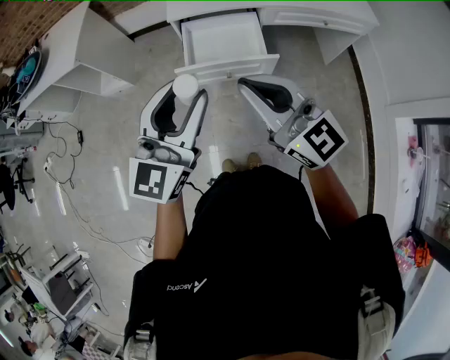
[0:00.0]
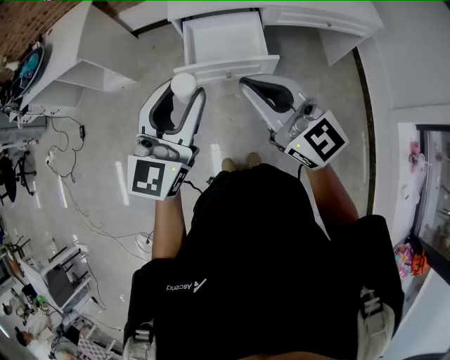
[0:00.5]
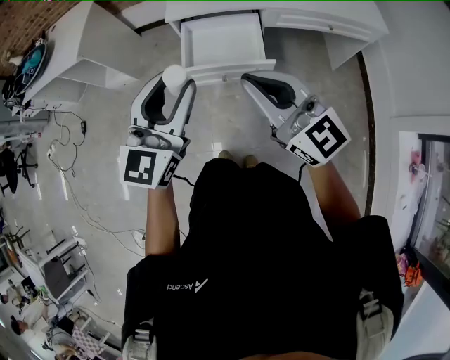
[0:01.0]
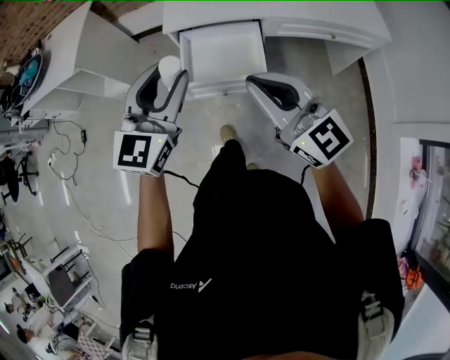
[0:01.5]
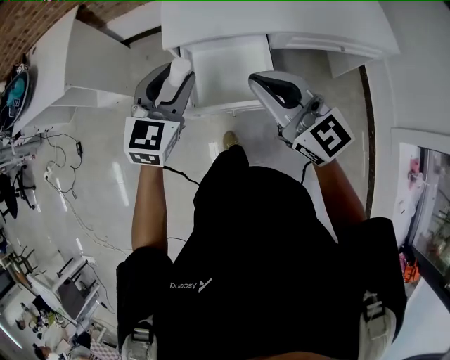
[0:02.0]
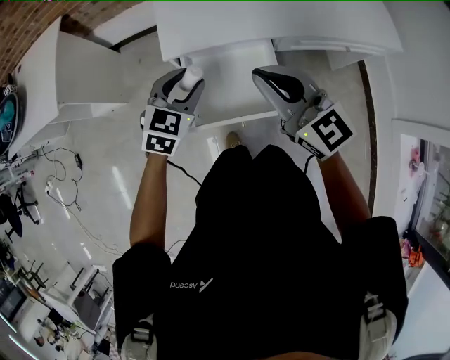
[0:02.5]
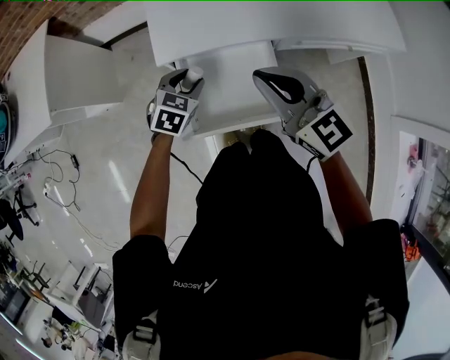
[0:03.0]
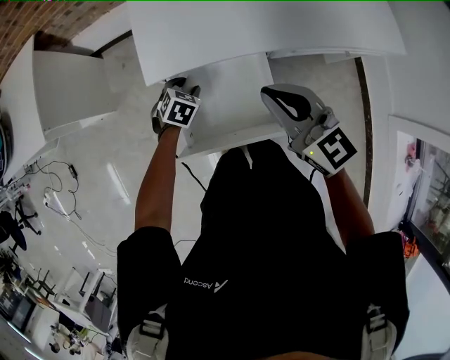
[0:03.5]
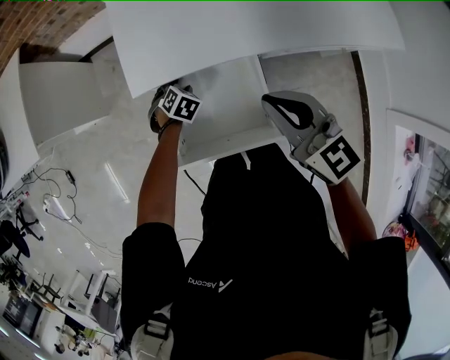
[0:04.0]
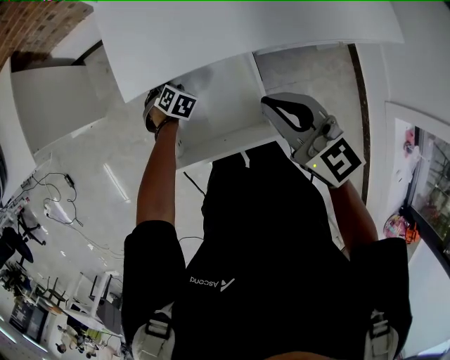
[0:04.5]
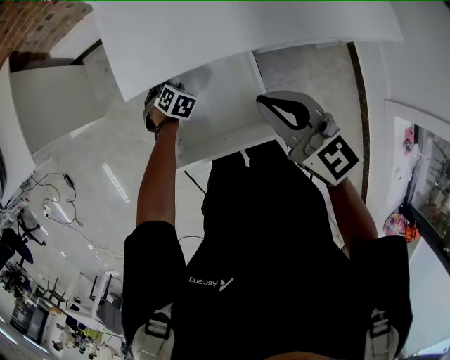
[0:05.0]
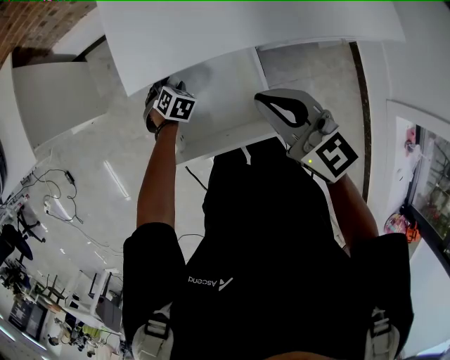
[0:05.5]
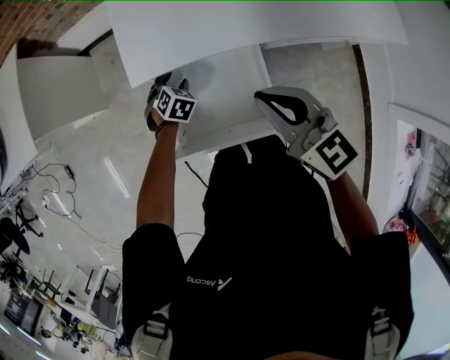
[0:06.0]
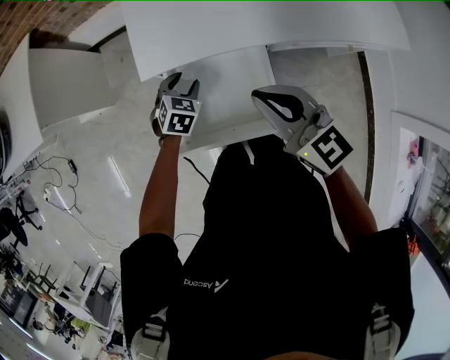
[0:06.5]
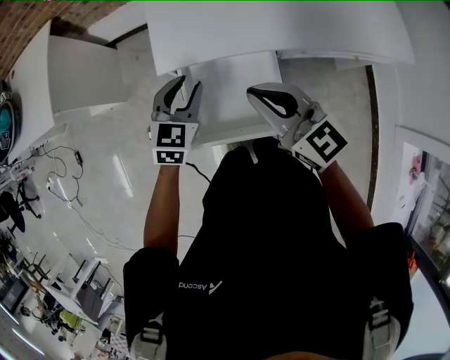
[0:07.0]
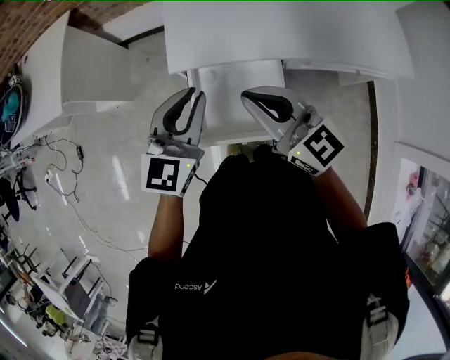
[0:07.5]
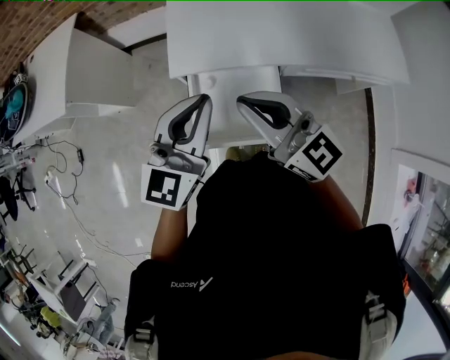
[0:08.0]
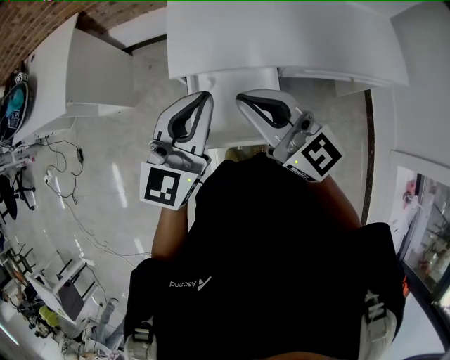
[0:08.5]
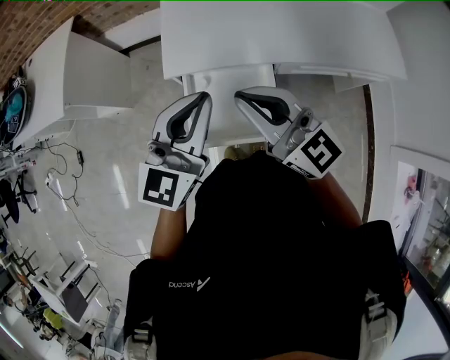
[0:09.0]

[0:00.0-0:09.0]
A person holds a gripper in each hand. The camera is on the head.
0:00.0 to 0:02.0: The grippers both shift forward by some 30 cm. The left gripper changes its angle by approximately 30 degrees.
0:02.0 to 0:04.5: The left gripper goes approximately 50 cm downward and forward, and angles its fingers downward, by approximately 50 degrees. The right gripper goes roughly 25 cm forward and downward, and turns by some 20 degrees.
0:04.5 to 0:07.0: The right gripper travels to the left by about 5 cm; the left gripper is displaced upward by roughly 30 cm, and points its fingers approximately 40 degrees further upward.
0:07.0 to 0:09.0: The left gripper shifts roughly 25 cm upward and backward, rotates roughly 30 degrees, and closes its fingers. The right gripper travels upward by about 10 cm.

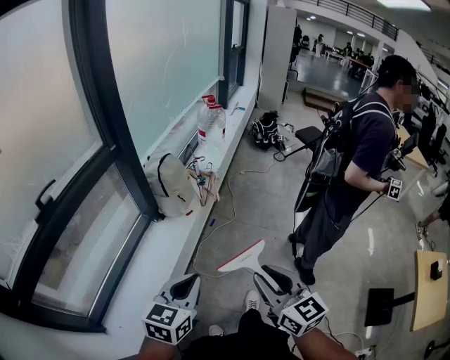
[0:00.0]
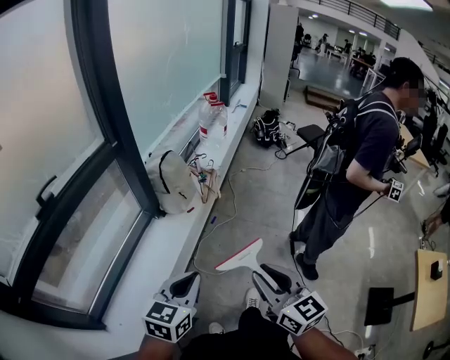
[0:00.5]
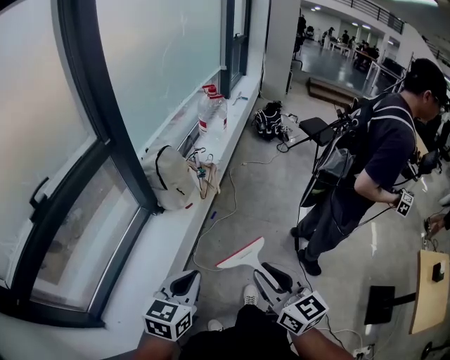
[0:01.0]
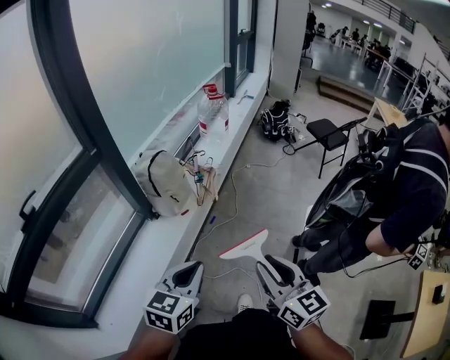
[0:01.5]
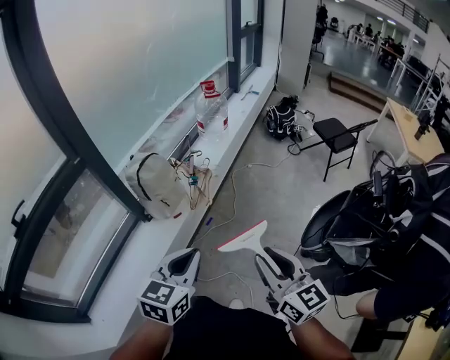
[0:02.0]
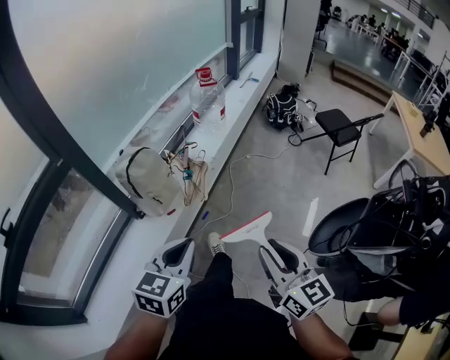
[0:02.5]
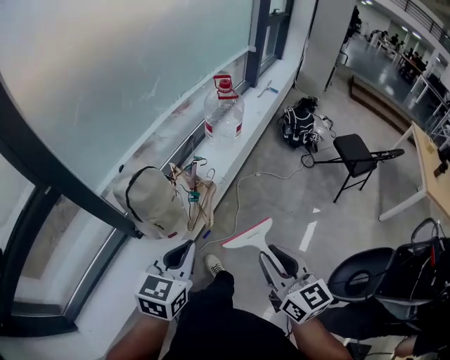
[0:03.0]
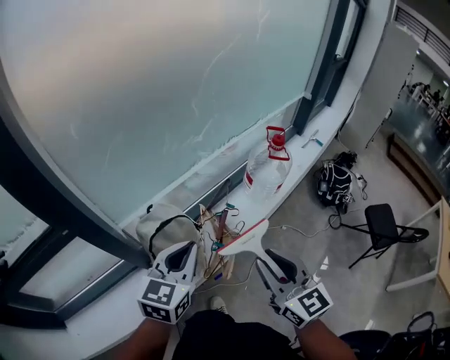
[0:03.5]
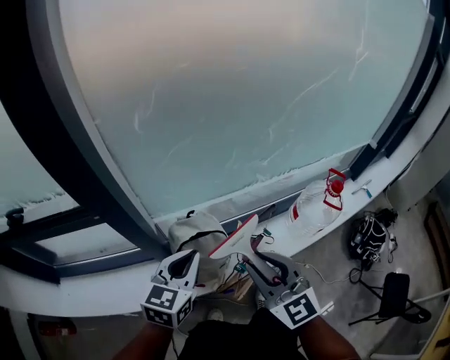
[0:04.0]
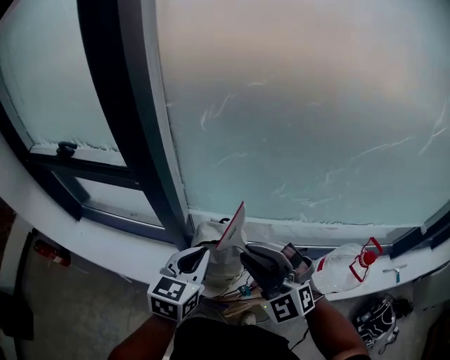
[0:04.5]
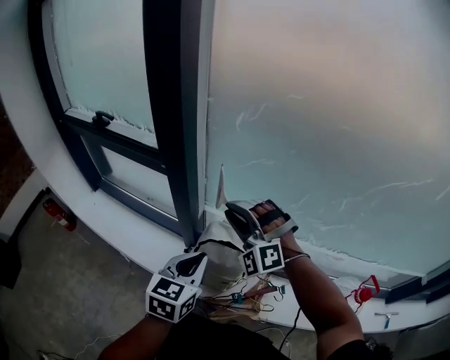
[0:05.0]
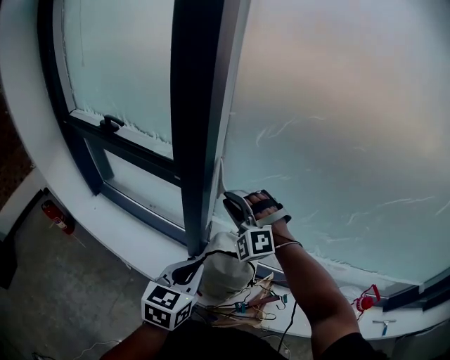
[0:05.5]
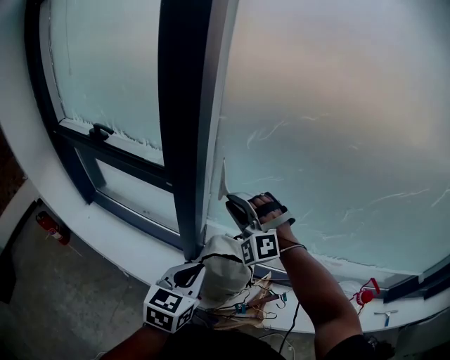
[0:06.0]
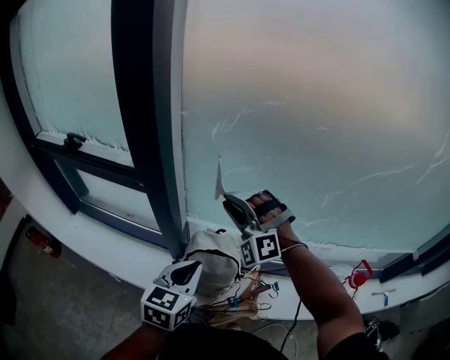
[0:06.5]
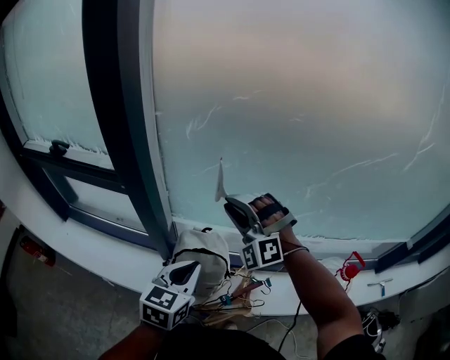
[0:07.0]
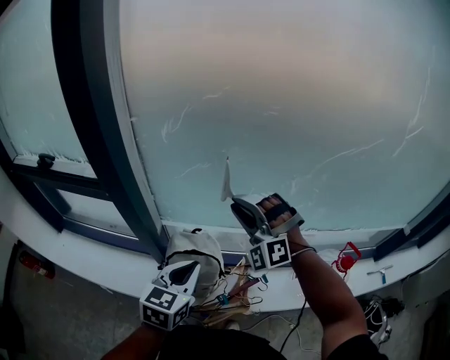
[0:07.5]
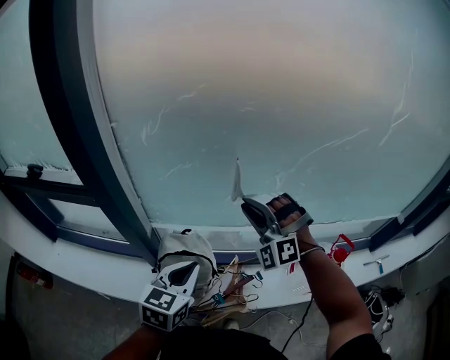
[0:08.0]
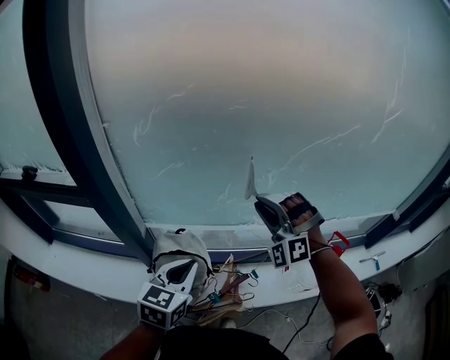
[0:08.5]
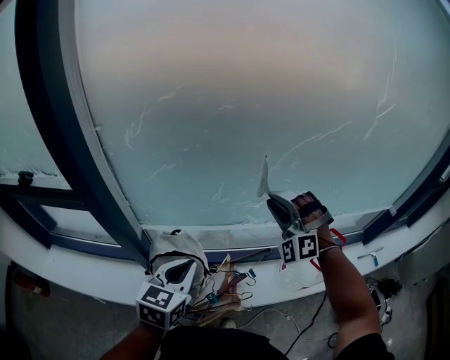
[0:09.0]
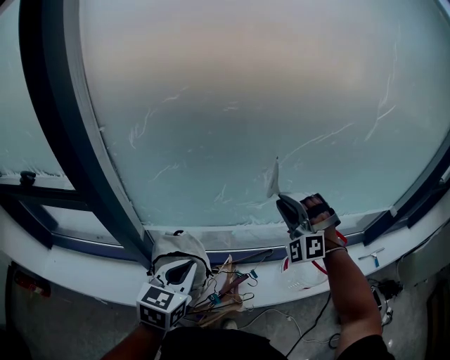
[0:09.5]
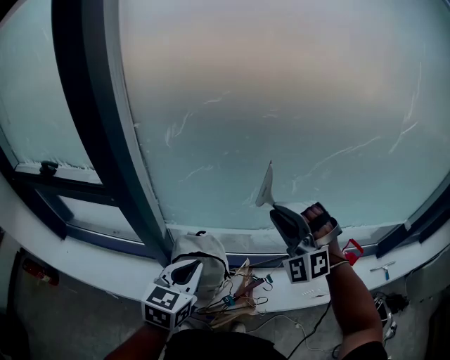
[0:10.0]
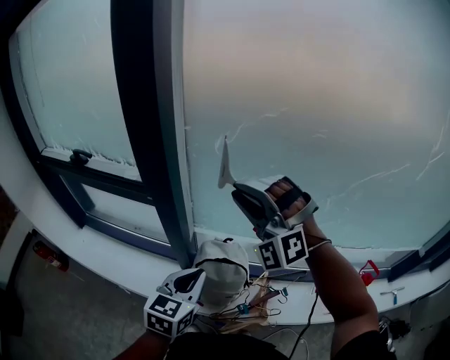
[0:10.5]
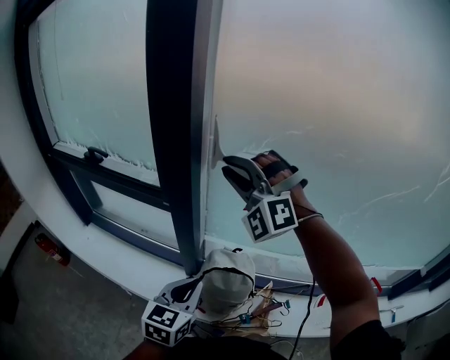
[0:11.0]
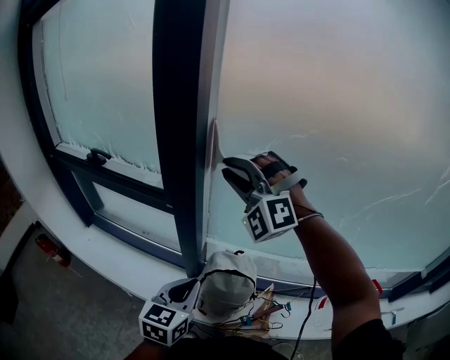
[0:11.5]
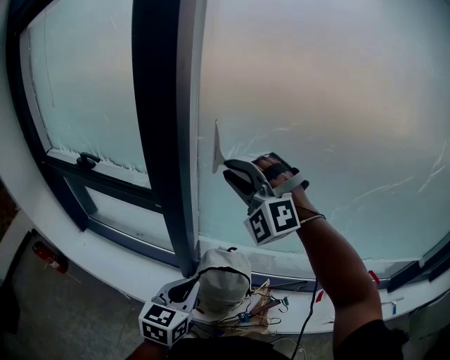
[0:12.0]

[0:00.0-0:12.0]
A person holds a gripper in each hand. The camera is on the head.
0:00.0 to 0:02.0: The grippers both shift forward and to the right by approximately 30 cm.
0:02.0 to 0:04.0: The two grippers travel together, about 60 cm. The left gripper swivels some 40 degrees; the right gripper changes its angle by approximately 60 degrees.
0:04.0 to 0:06.0: The left gripper shifts by roughly 5 cm, and rotates approximately 30 degrees. The right gripper shifts by roughly 25 cm, and twists about 70 degrees counterclockwise, seen from behind.
0:06.0 to 0:08.0: The right gripper shifts about 25 cm to the right, while the left gripper shifts approximately 15 cm to the right.
0:08.0 to 0:10.0: The right gripper moves about 15 cm to the right and comes back.
0:10.0 to 0:12.0: The right gripper goes some 30 cm to the left and forward, and swivels approximately 20 degrees. The left gripper shifts about 10 cm to the left.

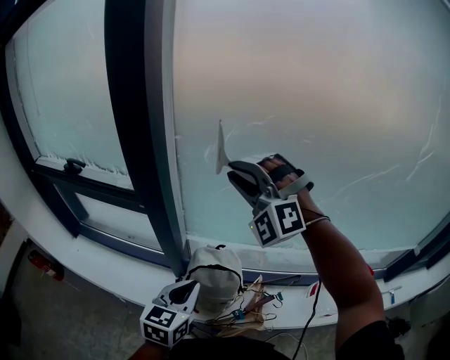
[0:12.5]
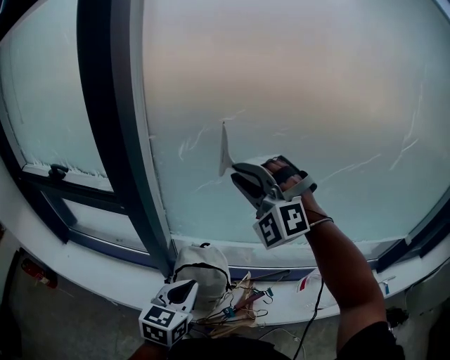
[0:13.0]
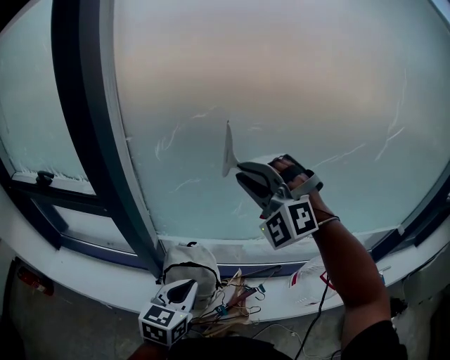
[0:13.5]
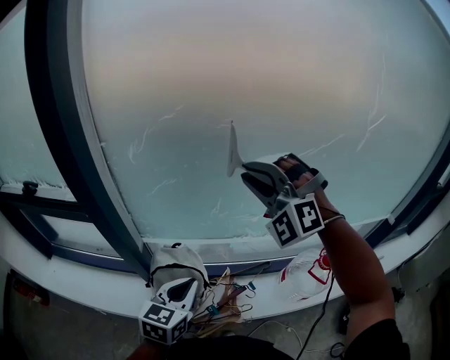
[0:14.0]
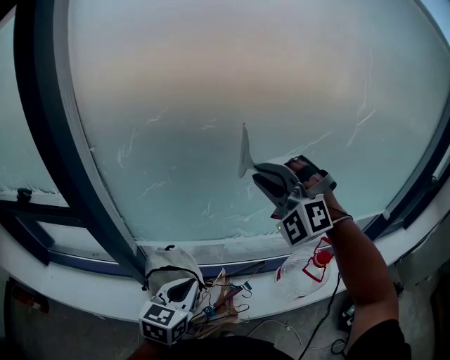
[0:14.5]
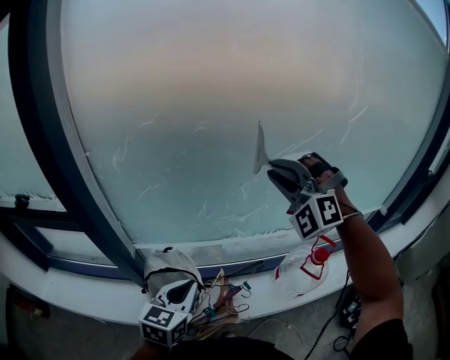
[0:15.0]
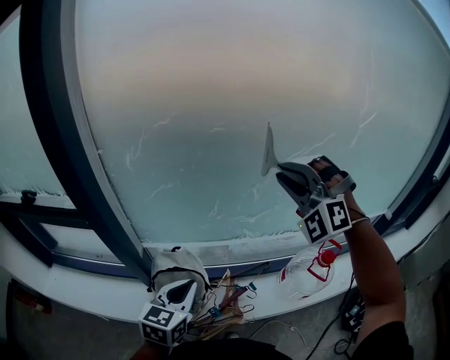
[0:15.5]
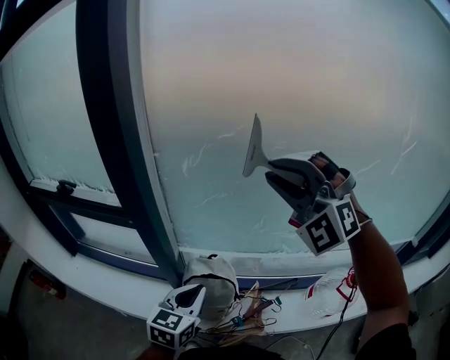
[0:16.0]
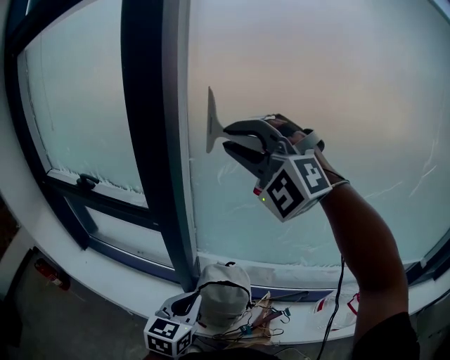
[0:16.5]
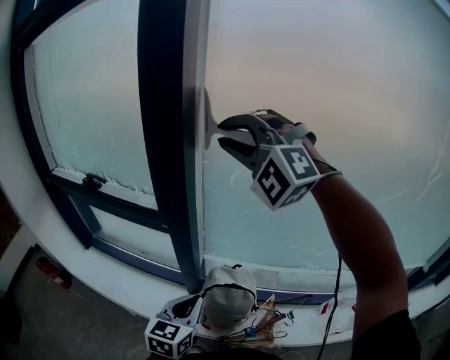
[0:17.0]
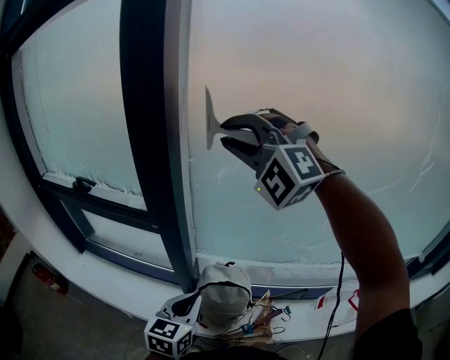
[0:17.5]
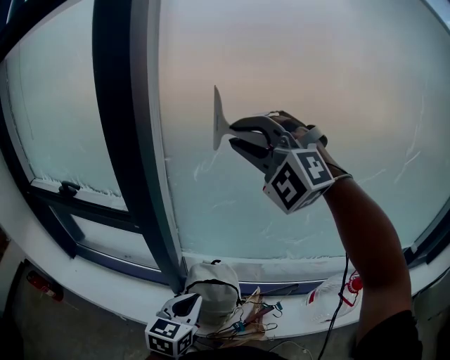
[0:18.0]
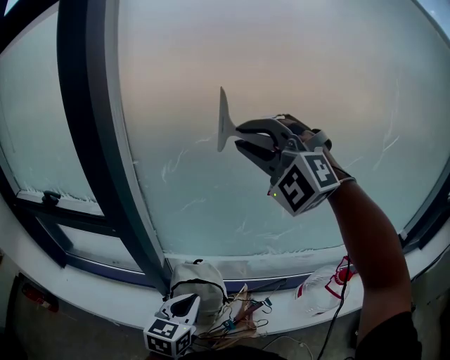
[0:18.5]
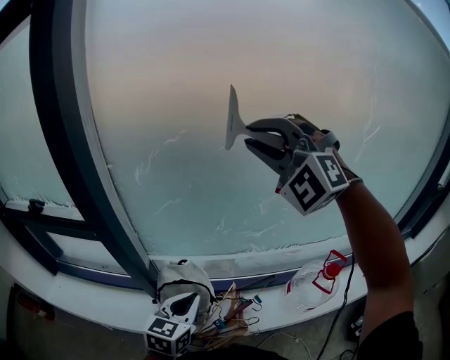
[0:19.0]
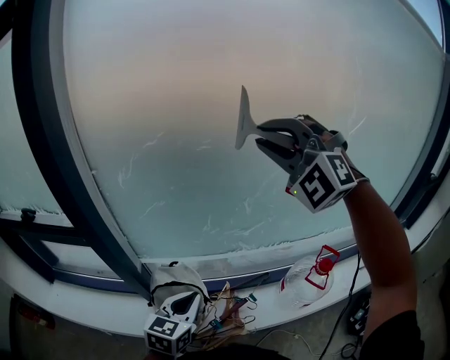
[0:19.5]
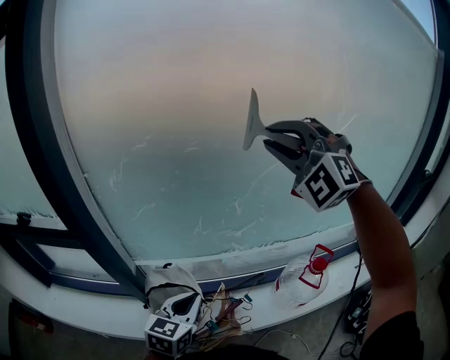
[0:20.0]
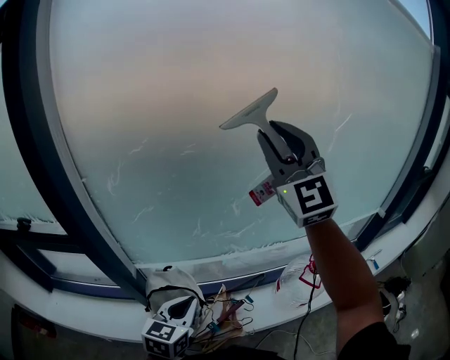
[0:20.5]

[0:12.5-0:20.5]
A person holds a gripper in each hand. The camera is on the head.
0:12.5 to 0:14.5: The right gripper goes some 30 cm to the right, while the left gripper moves to the right, some 15 cm.
0:14.5 to 0:16.5: The left gripper changes place by approximately 20 cm; the right gripper shifts by approximately 35 cm, and rotates approximately 30 degrees.
0:16.5 to 0:18.5: The right gripper is displaced to the right by some 15 cm. Meanwhile the left gripper heads to the right, covering roughly 10 cm.
0:18.5 to 0:20.5: The left gripper shifts about 10 cm to the right, while the right gripper is displaced to the right by some 20 cm, and angles its fingers upward, by about 30 degrees.
